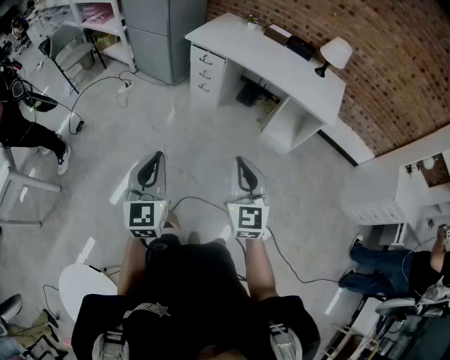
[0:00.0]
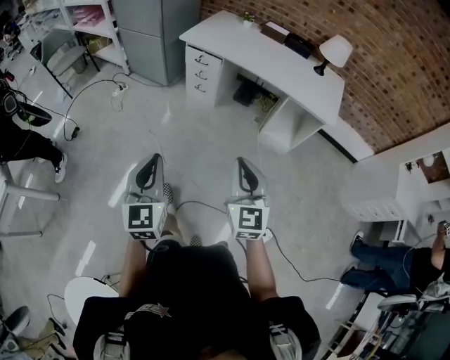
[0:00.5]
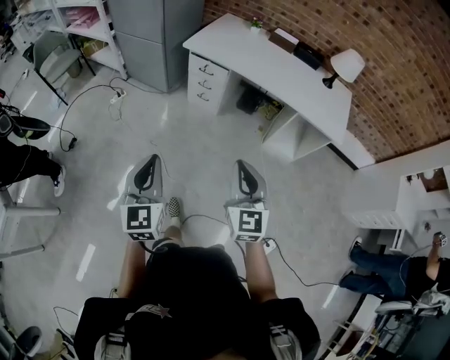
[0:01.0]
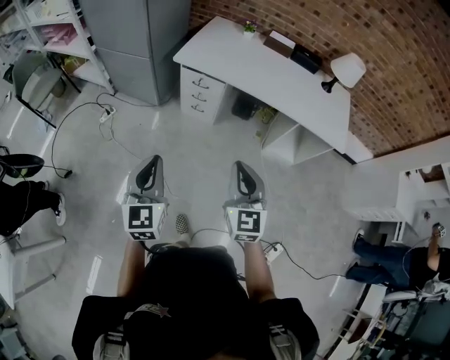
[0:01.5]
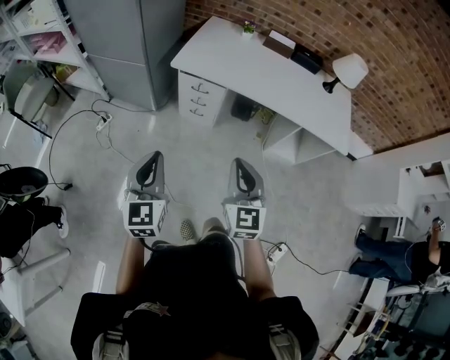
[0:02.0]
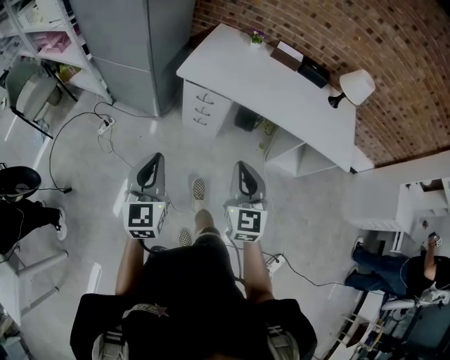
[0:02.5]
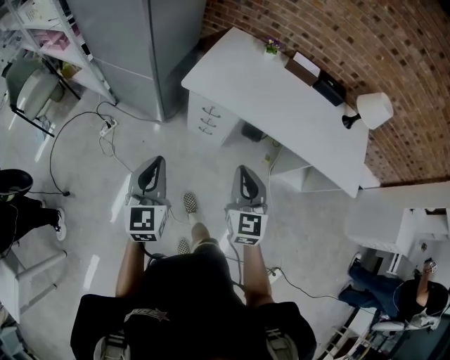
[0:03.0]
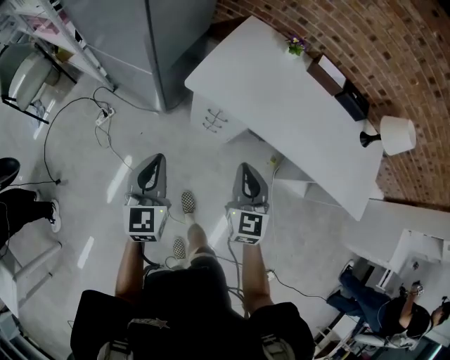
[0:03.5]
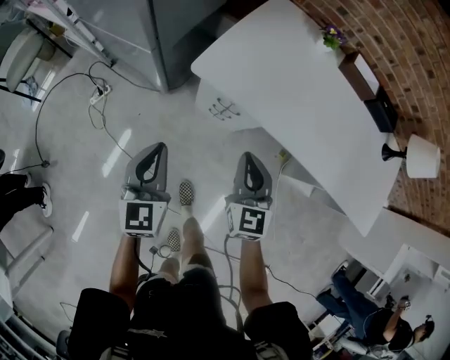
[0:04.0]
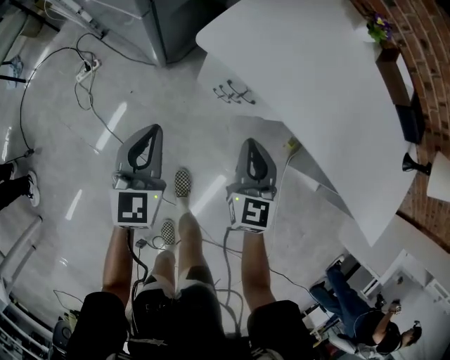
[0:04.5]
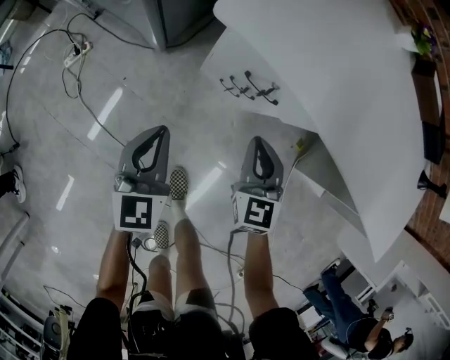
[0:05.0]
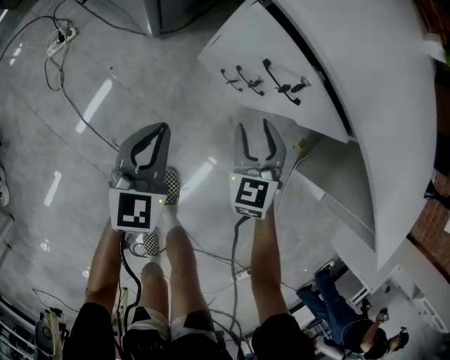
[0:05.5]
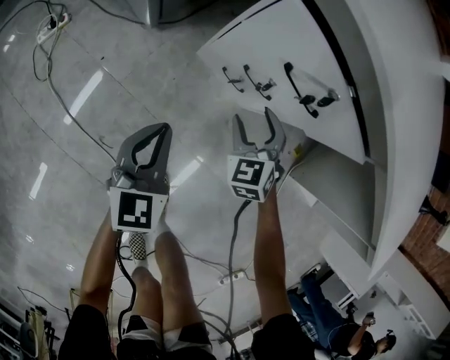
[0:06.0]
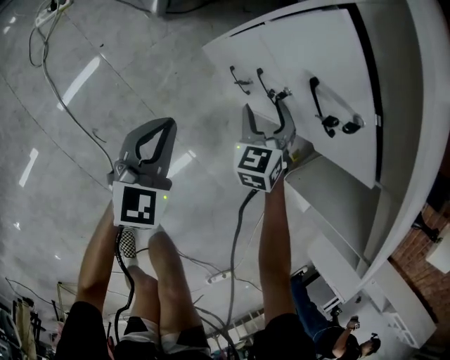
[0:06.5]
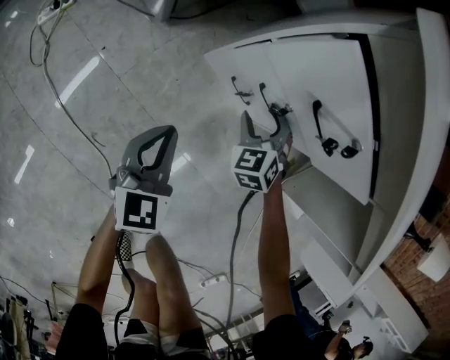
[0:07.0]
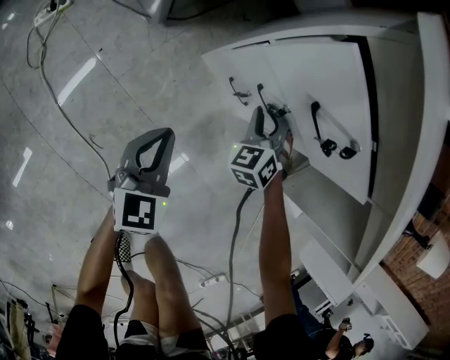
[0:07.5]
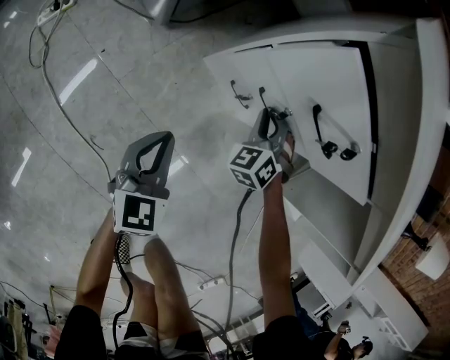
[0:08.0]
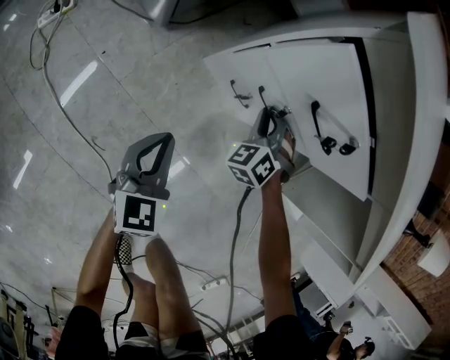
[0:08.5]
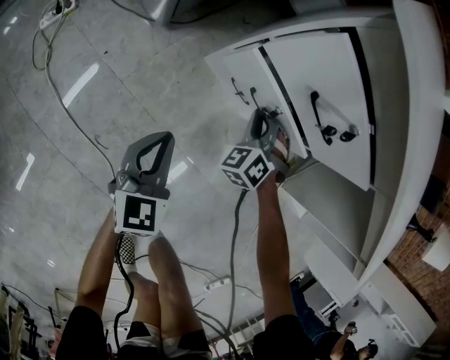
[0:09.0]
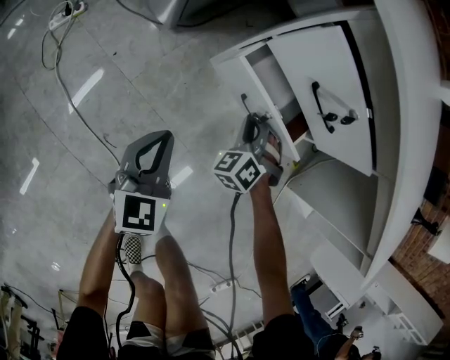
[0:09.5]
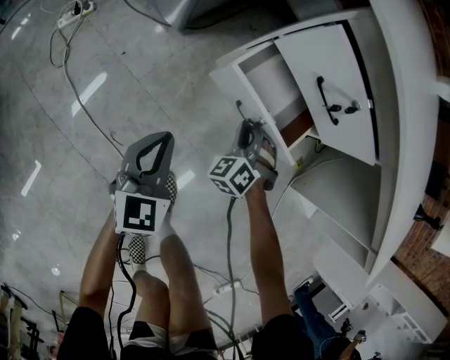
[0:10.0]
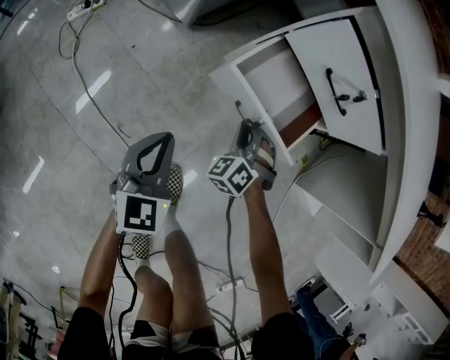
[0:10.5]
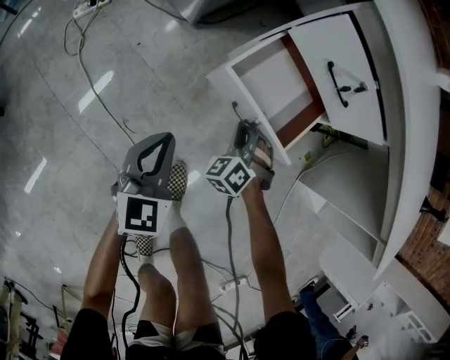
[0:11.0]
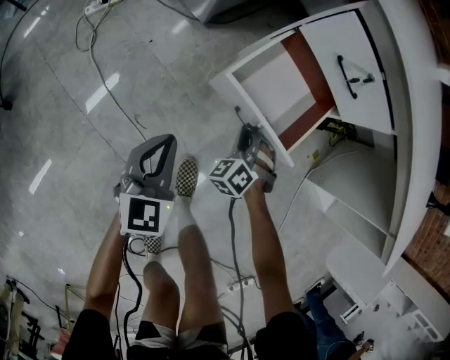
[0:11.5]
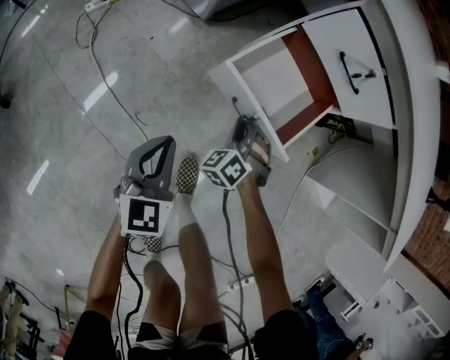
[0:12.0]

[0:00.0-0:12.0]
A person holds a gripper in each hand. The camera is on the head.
0:00.0 to 0:02.0: Both grippers are carried forward, approximately 50 cm.
0:02.0 to 0:04.0: Both grippers travel together forward and downward, approximately 40 cm.
0:04.0 to 0:06.0: Both grippers travel together downward, roughly 50 cm. The right gripper rotates approximately 40 degrees, and opens up.
0:06.0 to 0:08.0: The left gripper heads downward, covering roughly 5 cm. Meanwhile the right gripper moves forward and downward, approximately 10 cm, changes its angle by roughly 20 degrees, and closes its fingers.
0:08.0 to 0:10.0: The left gripper goes approximately 5 cm backward, while the right gripper goes roughly 15 cm backward.
0:10.0 to 0:12.0: Both grippers move backward, some 15 cm.

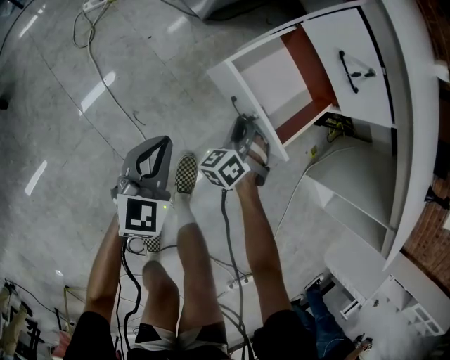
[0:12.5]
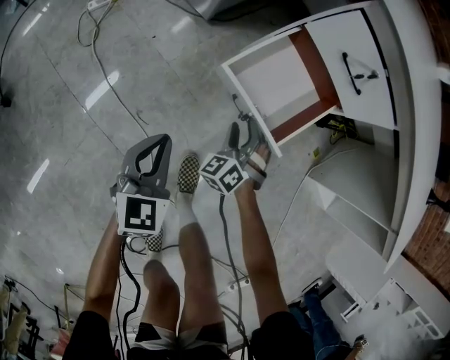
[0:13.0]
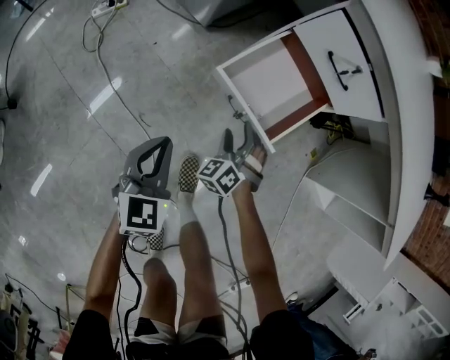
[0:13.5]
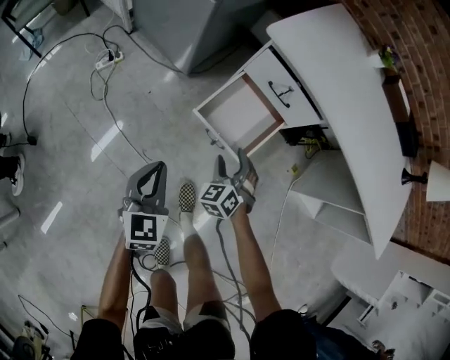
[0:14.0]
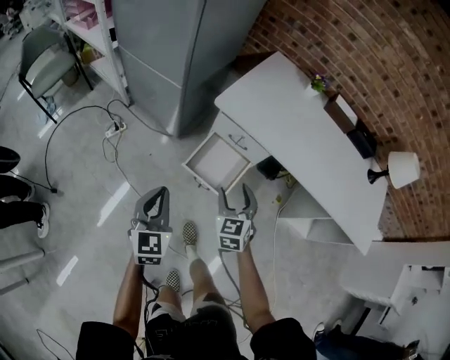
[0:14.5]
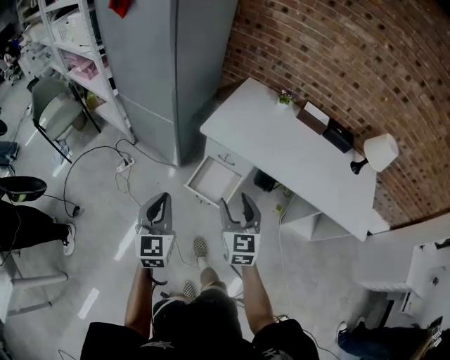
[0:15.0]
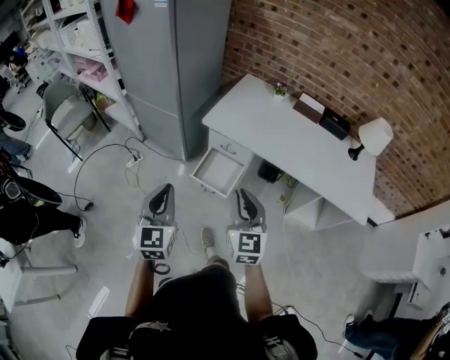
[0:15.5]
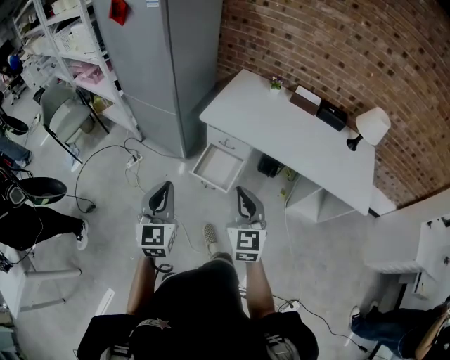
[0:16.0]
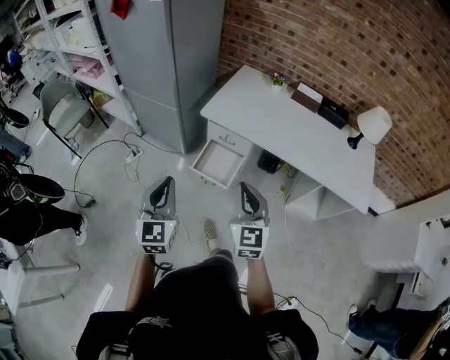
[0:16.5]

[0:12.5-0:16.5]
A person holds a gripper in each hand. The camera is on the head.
0:12.5 to 0:14.5: The two grippers go some 40 cm upward. The right gripper rolls clockwise, seen from behind, by roughly 50 degrees, and opens.
0:14.5 to 0:16.5: The grippers both shift upward and backward by some 30 cm. The right gripper turns by roughly 30 degrees, and closes its fingers.

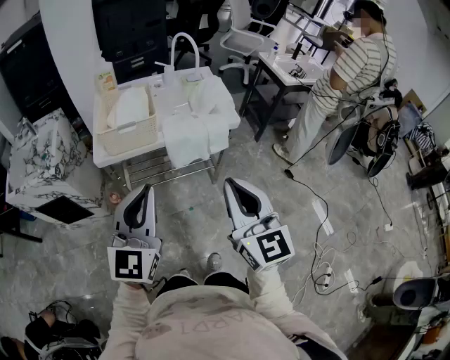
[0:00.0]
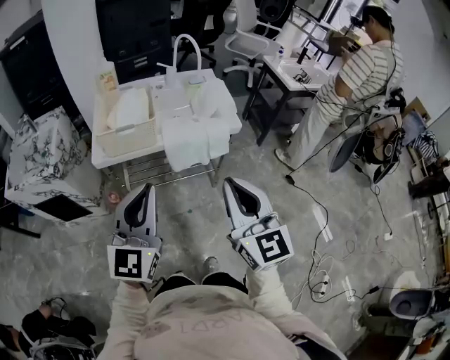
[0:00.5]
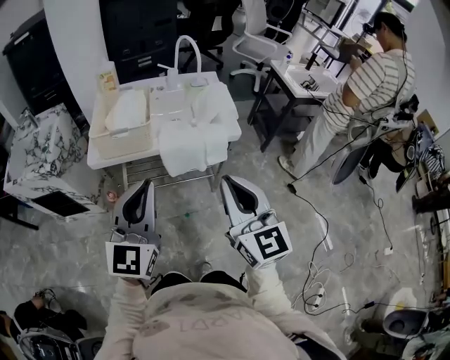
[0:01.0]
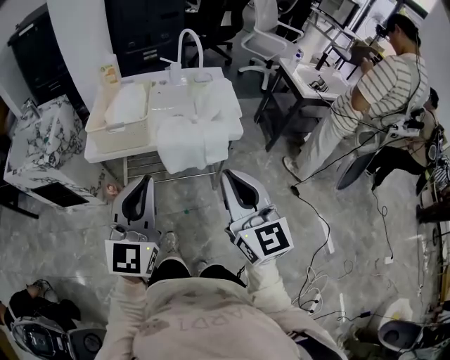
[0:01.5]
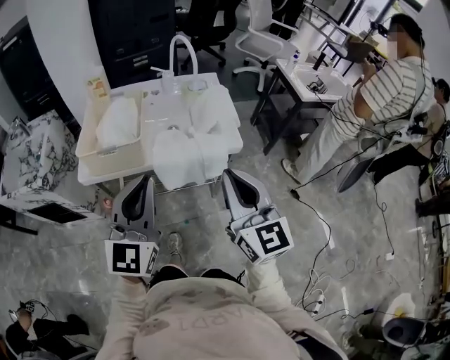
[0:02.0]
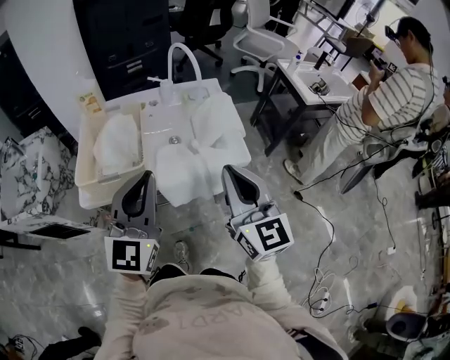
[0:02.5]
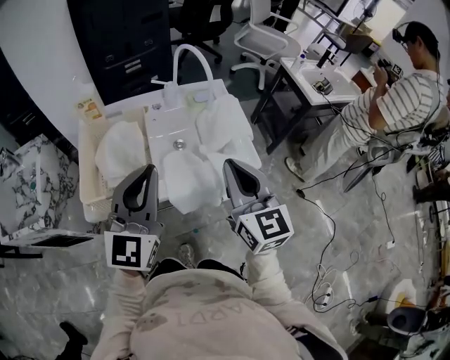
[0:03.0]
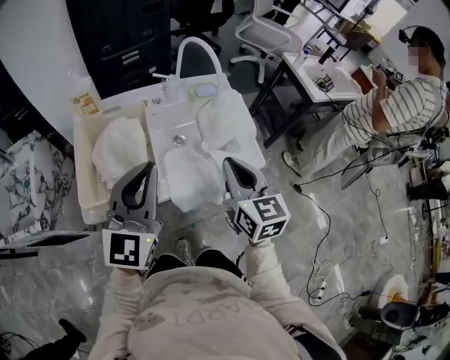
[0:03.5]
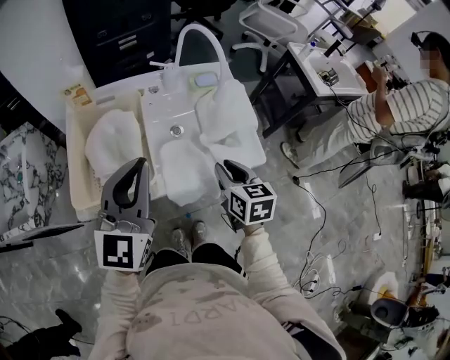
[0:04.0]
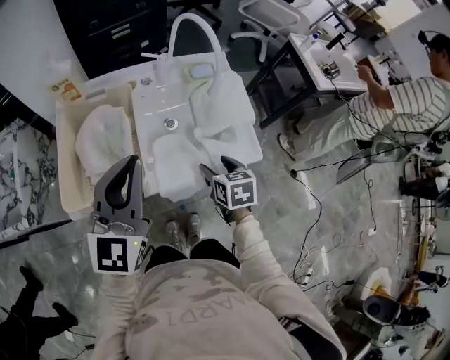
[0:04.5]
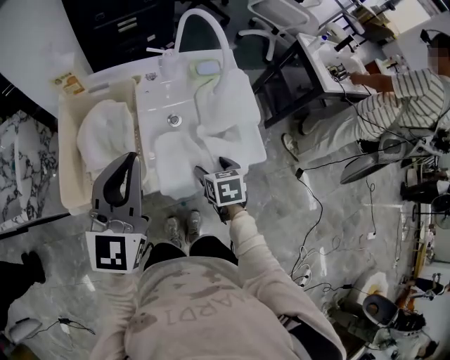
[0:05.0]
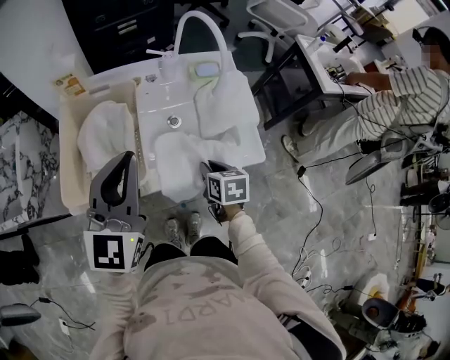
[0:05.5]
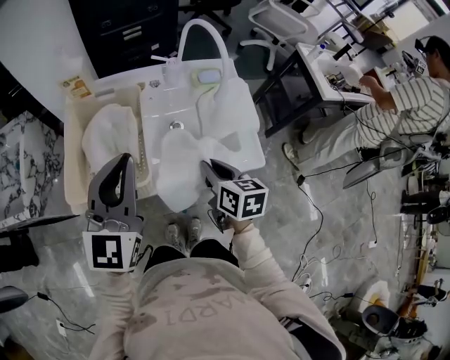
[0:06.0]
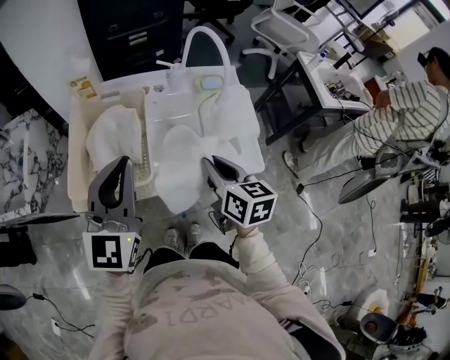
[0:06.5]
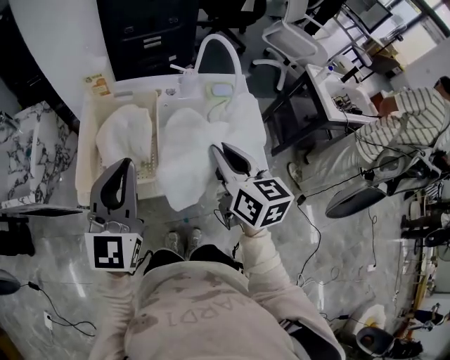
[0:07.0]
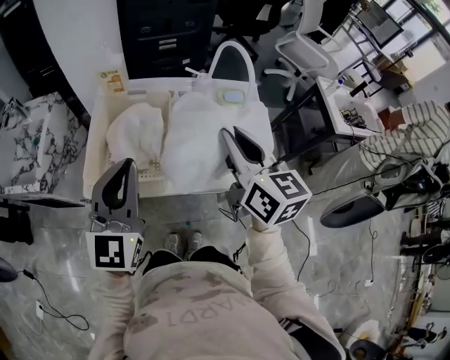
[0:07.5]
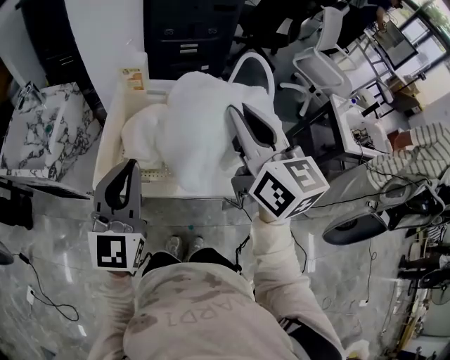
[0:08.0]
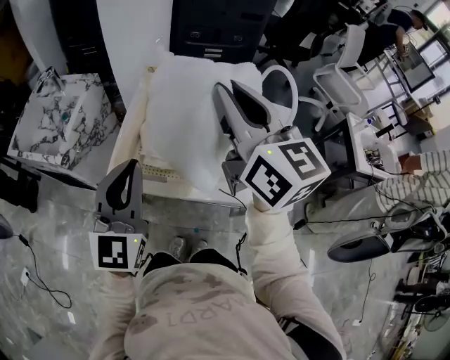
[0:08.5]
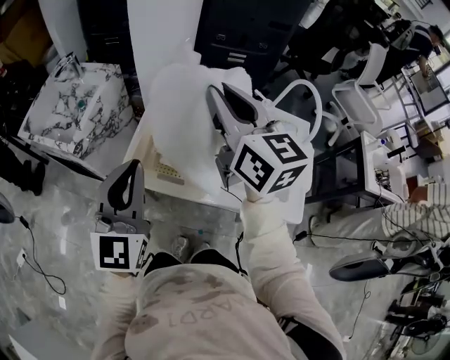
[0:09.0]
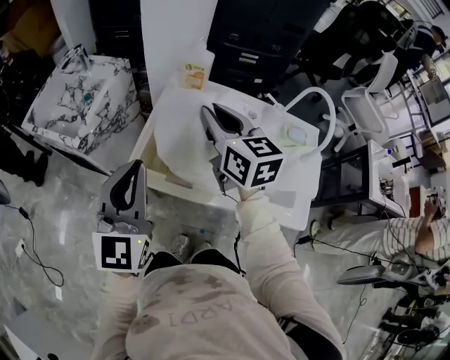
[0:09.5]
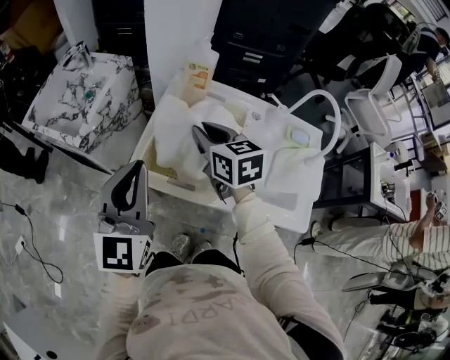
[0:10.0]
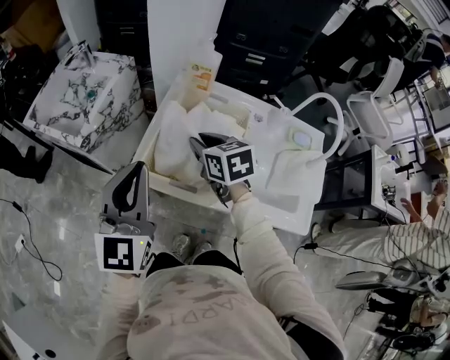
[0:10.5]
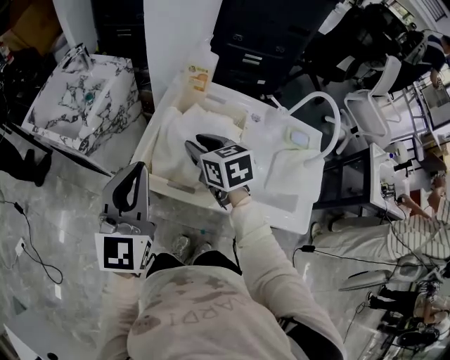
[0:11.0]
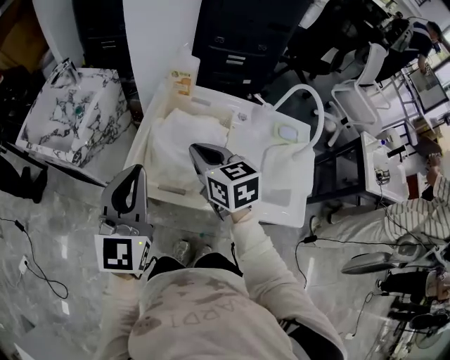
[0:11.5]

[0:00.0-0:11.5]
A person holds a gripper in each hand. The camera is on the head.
0:00.0 to 0:02.0: The two grippers go roughly 20 cm forward and to the right.
0:02.0 to 0:04.0: The right gripper shifts roughly 30 cm forward and downward, and points its fingers approximately 40 degrees further downward, while the left gripper is displaced forward and to the left by about 25 cm.
0:04.0 to 0:06.0: The right gripper moves about 10 cm downward and comes back, and opens, then closes again.
0:06.0 to 0:07.5: The right gripper moves upward, about 20 cm, and rotates about 30 degrees, while the left gripper shifts by about 5 cm.
0:07.5 to 0:09.5: The right gripper goes roughly 25 cm to the left and forward, and rotates approximately 30 degrees; the left gripper travels to the left by roughly 15 cm, and rotates about 20 degrees.
0:09.5 to 0:11.5: The right gripper travels downward by some 10 cm.
